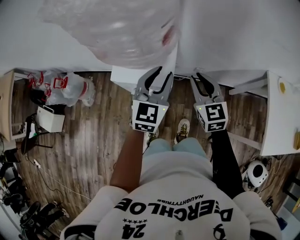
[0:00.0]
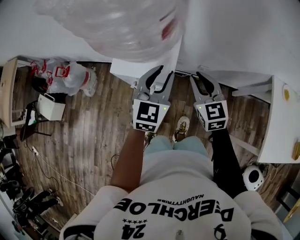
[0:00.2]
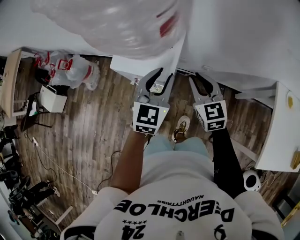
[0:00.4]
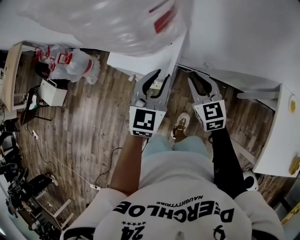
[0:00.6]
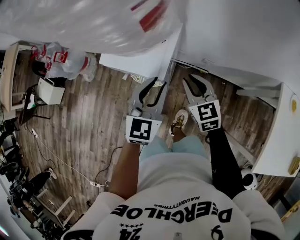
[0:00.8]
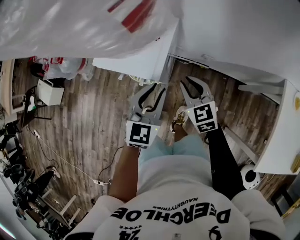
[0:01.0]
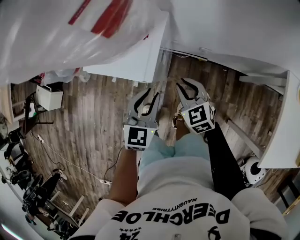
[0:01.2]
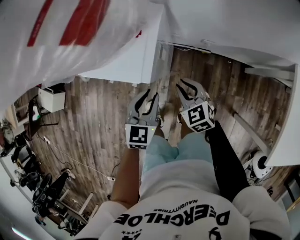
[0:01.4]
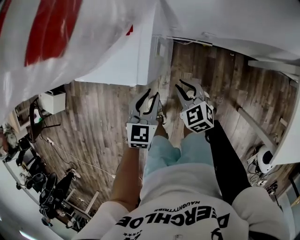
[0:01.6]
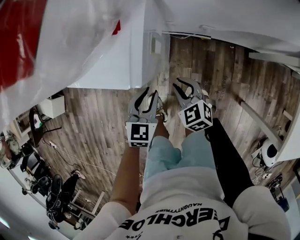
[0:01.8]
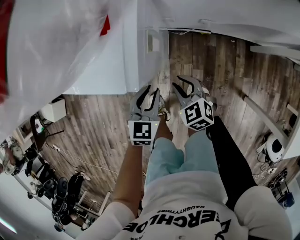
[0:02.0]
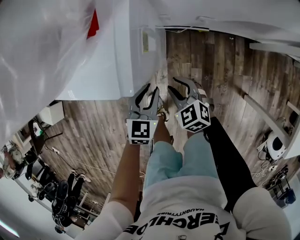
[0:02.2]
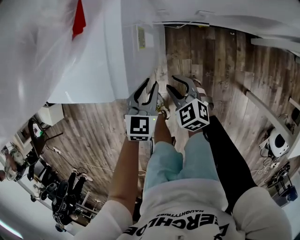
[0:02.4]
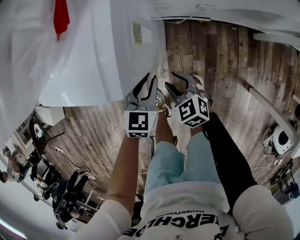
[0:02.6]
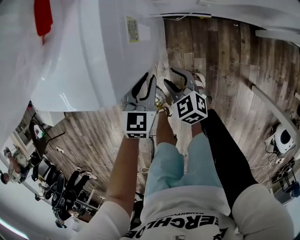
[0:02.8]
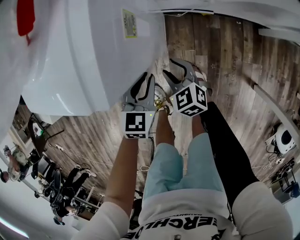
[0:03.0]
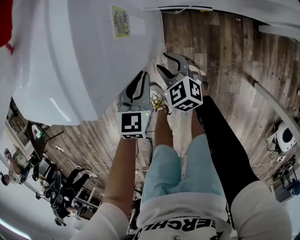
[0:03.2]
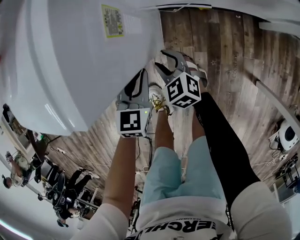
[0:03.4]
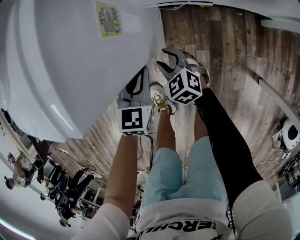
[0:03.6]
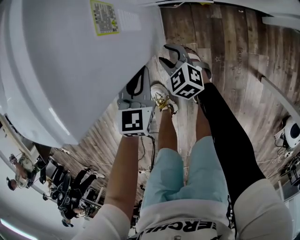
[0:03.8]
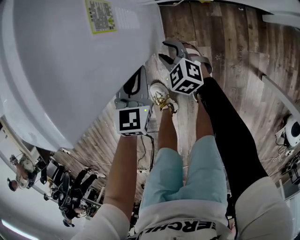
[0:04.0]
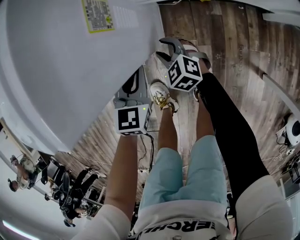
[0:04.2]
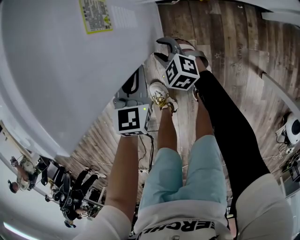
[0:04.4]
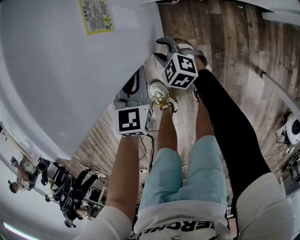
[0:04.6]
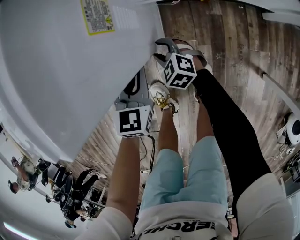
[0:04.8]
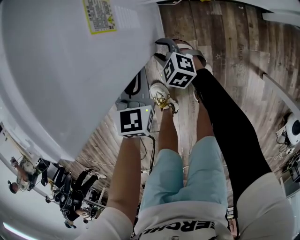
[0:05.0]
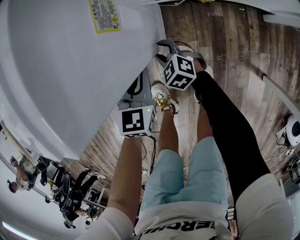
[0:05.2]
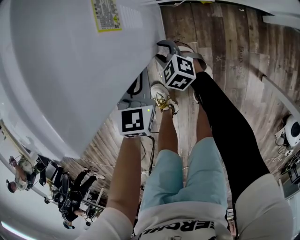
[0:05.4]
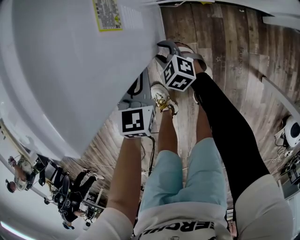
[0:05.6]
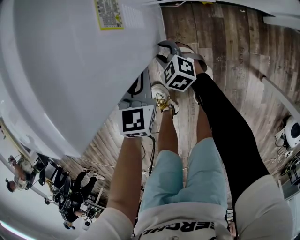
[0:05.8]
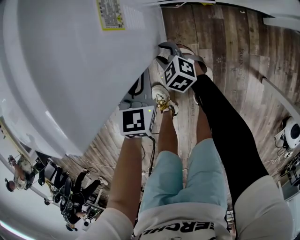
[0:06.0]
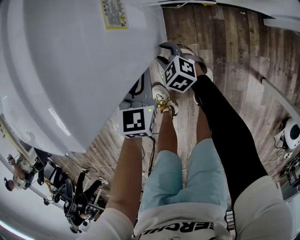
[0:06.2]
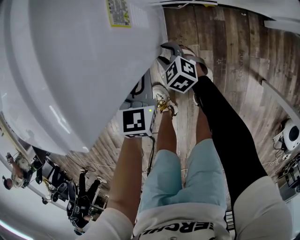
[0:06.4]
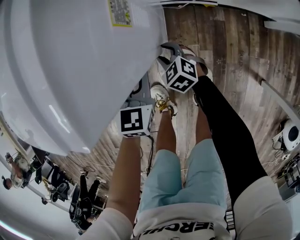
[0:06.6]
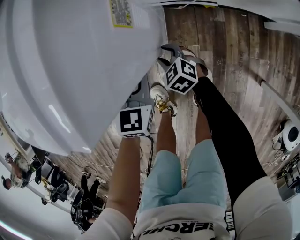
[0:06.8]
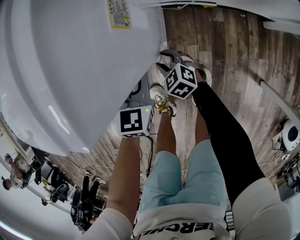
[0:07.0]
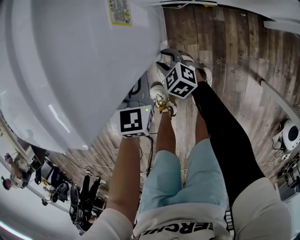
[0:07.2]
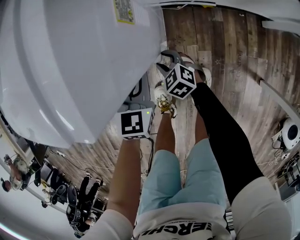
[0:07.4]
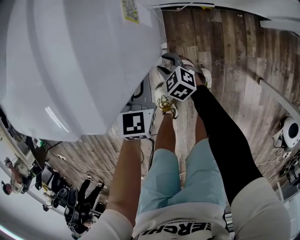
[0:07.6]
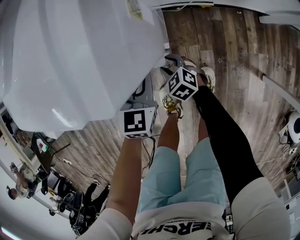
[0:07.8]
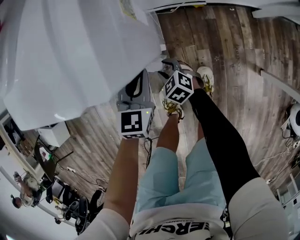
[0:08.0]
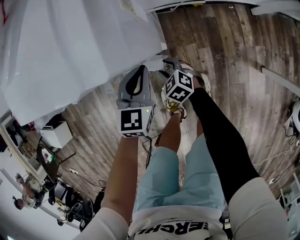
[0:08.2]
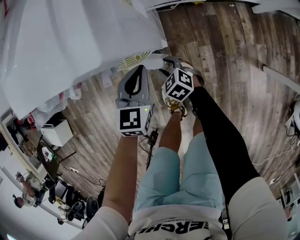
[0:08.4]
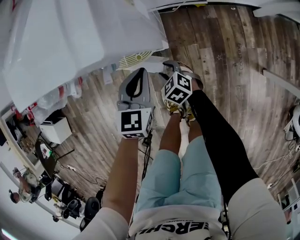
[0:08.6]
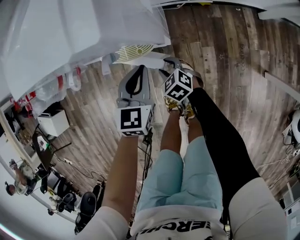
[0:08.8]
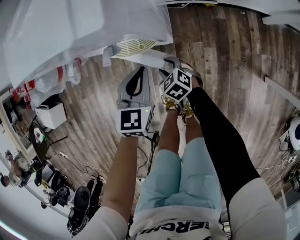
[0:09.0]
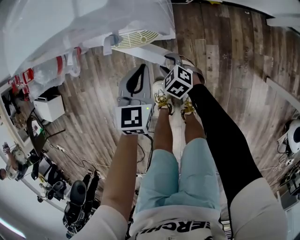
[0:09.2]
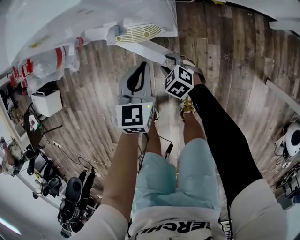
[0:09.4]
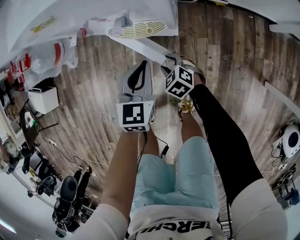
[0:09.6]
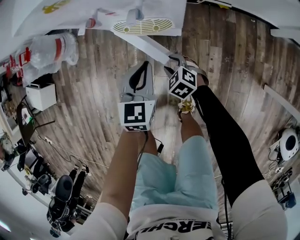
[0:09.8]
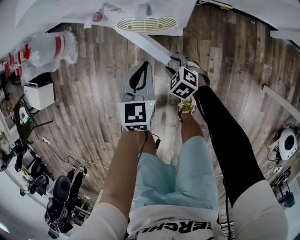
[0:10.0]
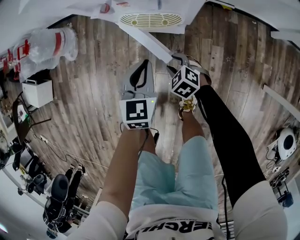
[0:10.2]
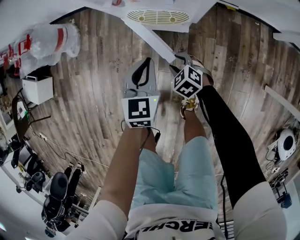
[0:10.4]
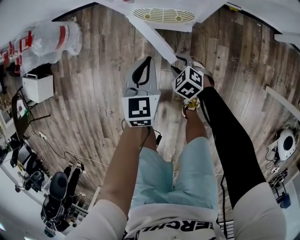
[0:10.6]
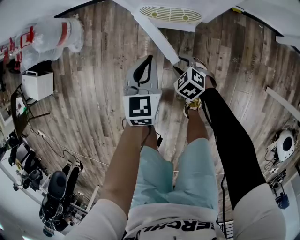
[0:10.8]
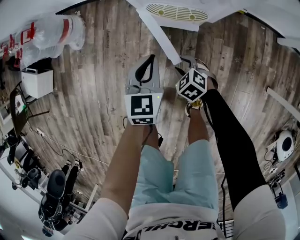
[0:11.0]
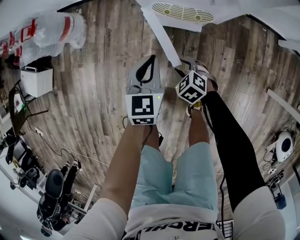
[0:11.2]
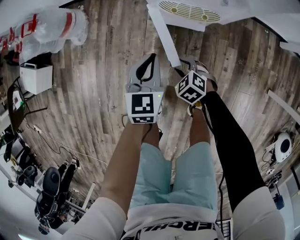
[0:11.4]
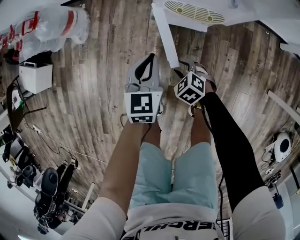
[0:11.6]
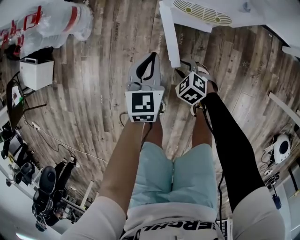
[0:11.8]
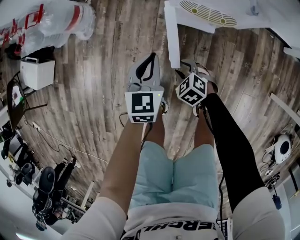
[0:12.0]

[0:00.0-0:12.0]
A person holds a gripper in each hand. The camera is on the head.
0.0 to 1.6 s: The two grippers go some 25 cm downward. The right gripper turns by roughly 30 degrees, while the left gripper rotates approximately 30 degrees.
1.6 to 3.0 s: The grippers both shift downward by about 15 cm. The right gripper opens.
3.0 to 4.4 s: The right gripper shifts roughly 10 cm downward; the left gripper shifts by approximately 5 cm.
4.4 to 7.6 s: There are only small adjustments of the grippers.
7.6 to 9.0 s: Both grippers move backward, roughly 5 cm.
9.0 to 10.4 s: The left gripper travels to the left by about 10 cm. The right gripper moves to the left, about 5 cm.
10.4 to 12.0 s: Both grippers travel together to the left, some 15 cm.

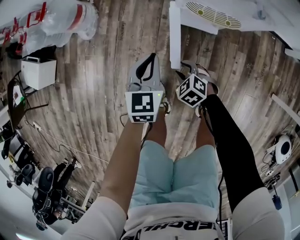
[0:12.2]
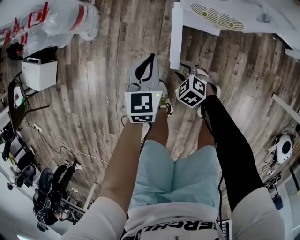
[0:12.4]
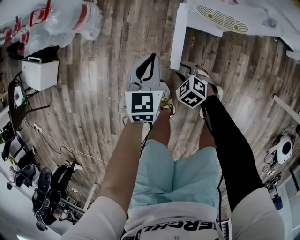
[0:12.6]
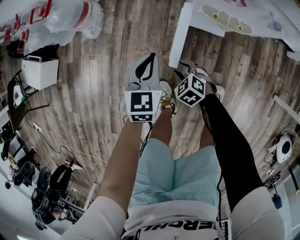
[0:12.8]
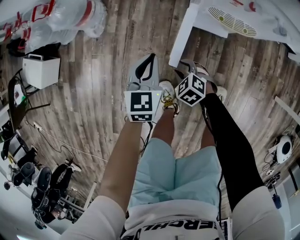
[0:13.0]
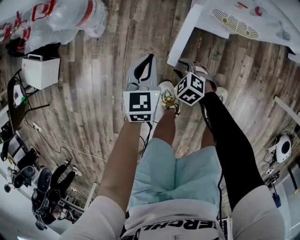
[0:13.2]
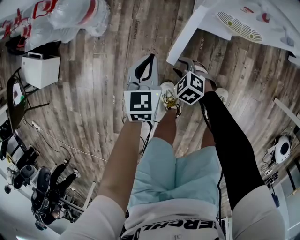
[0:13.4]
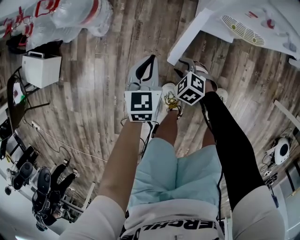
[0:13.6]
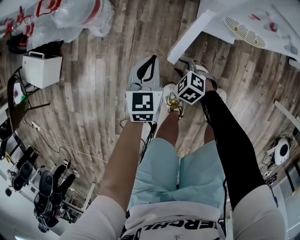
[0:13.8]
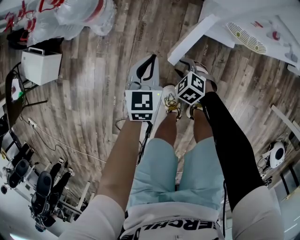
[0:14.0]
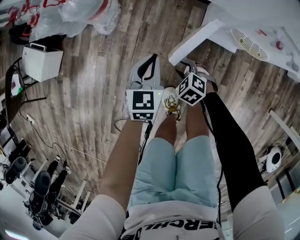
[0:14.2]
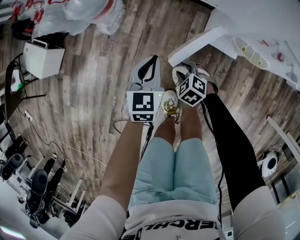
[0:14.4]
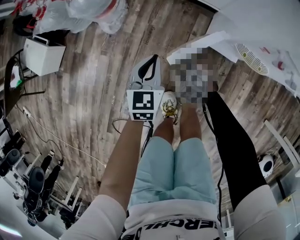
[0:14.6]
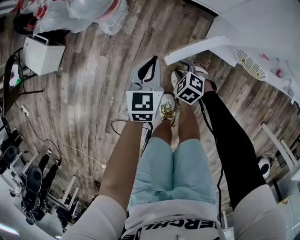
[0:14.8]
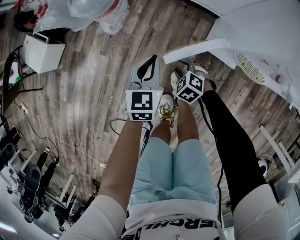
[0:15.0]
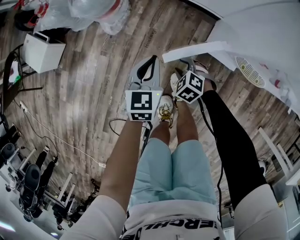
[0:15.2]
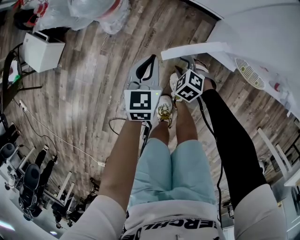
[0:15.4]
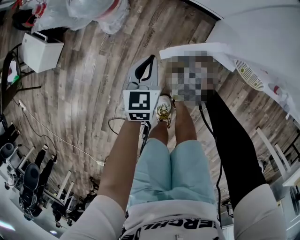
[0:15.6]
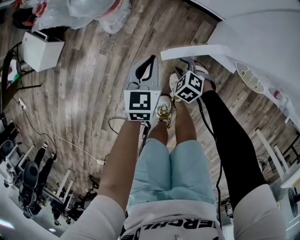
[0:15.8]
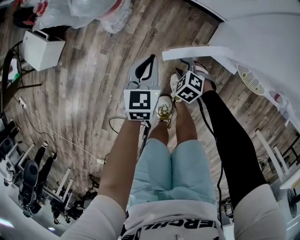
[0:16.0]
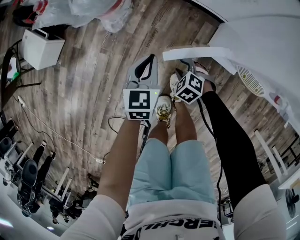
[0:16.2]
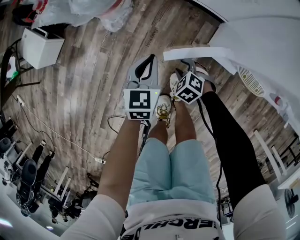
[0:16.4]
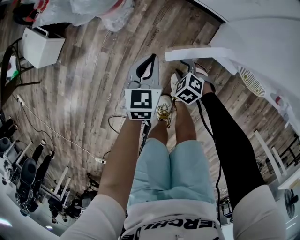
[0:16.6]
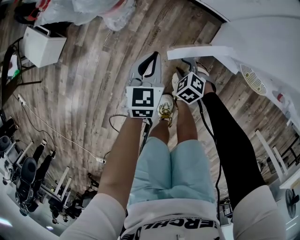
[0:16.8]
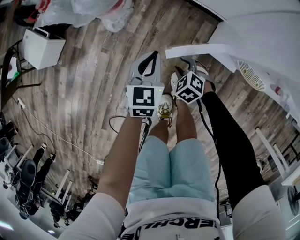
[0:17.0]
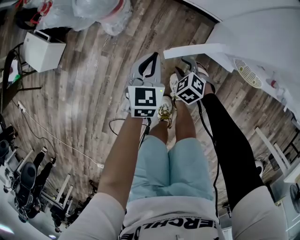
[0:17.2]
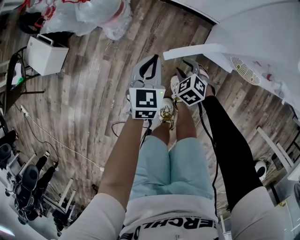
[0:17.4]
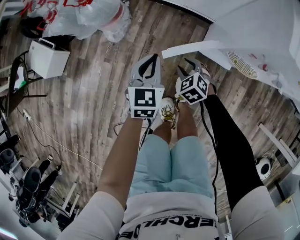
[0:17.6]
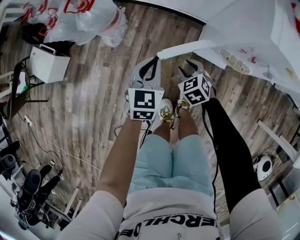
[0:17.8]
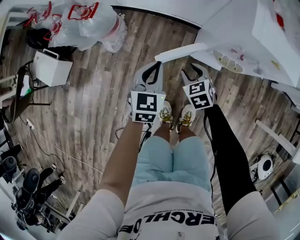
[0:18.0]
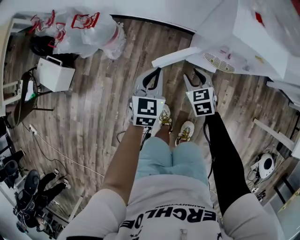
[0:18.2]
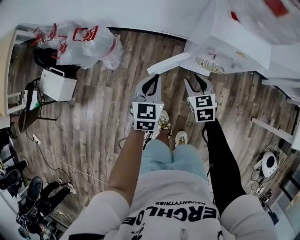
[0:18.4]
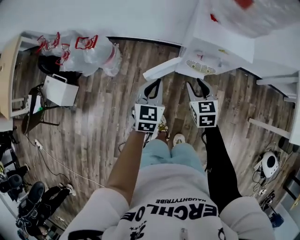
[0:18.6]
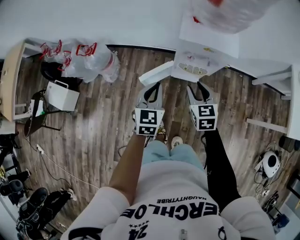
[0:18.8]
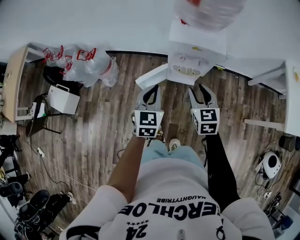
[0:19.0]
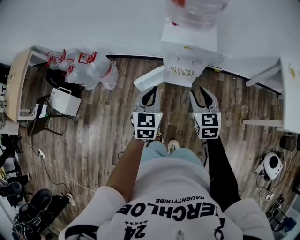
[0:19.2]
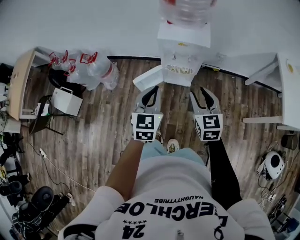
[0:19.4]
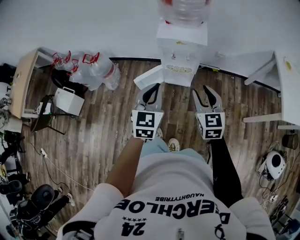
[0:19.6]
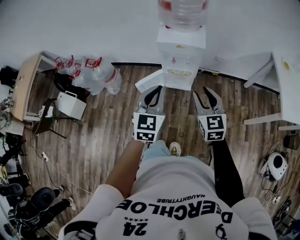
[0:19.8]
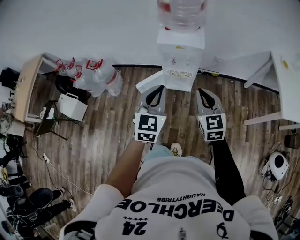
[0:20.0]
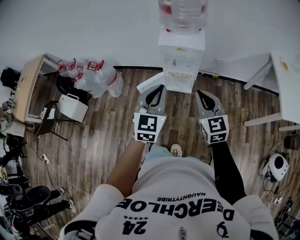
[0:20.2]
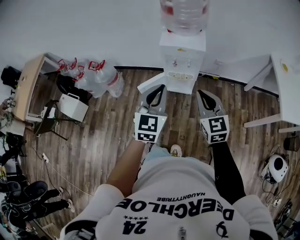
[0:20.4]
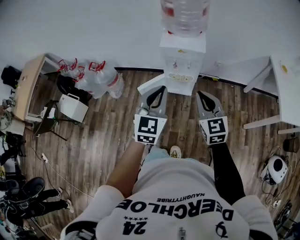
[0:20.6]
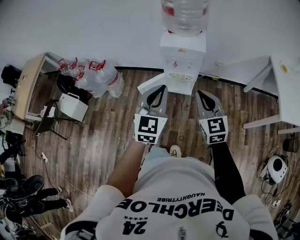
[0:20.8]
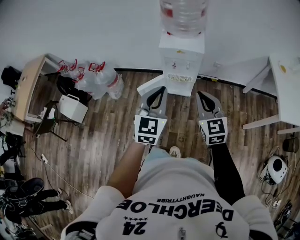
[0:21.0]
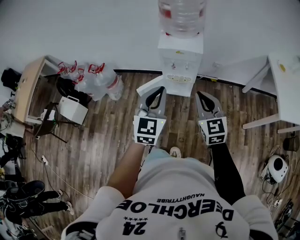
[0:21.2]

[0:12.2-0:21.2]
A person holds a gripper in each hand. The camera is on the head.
12.2 to 13.8 s: Both grippers move to the left and forward, about 15 cm.
13.8 to 15.2 s: Both grippers move forward, about 10 cm.
15.2 to 16.6 s: The grippers move only a little.
16.6 to 18.2 s: The grippers both shift upward by approximately 25 cm. The right gripper turns by roughly 50 degrees.
18.2 to 19.8 s: The right gripper moves upward, to the right and backward, roughly 50 cm, and tilts its fingers some 30 degrees upward; the left gripper travels to the right, upward and backward by about 40 cm.
19.8 to 21.2 s: The right gripper changes place by some 5 cm, and closes up. The left gripper shifts by some 5 cm.

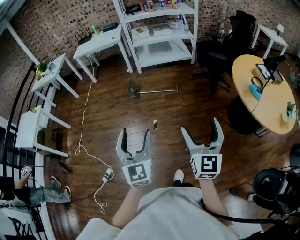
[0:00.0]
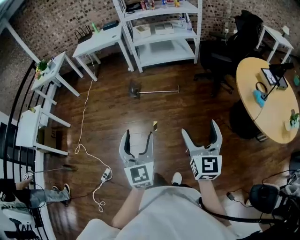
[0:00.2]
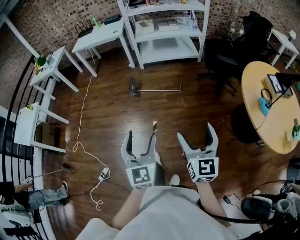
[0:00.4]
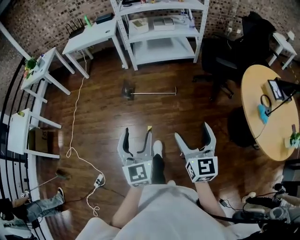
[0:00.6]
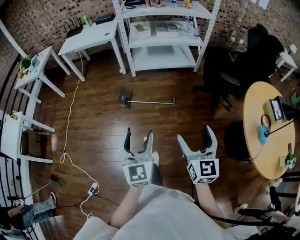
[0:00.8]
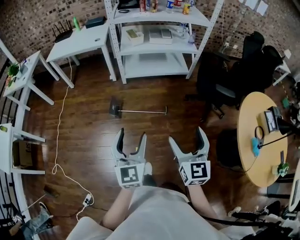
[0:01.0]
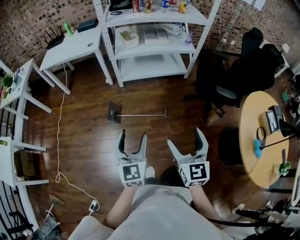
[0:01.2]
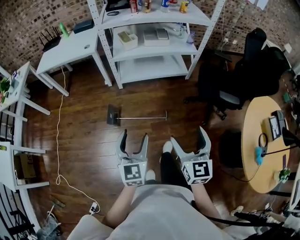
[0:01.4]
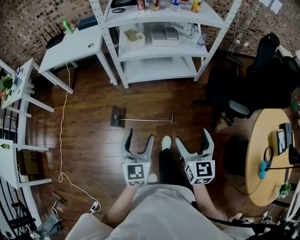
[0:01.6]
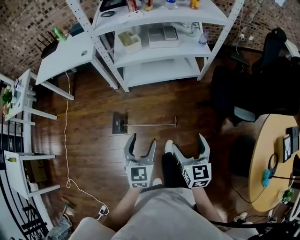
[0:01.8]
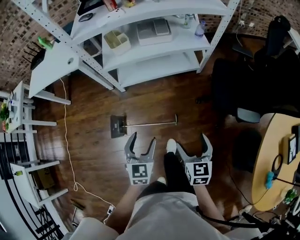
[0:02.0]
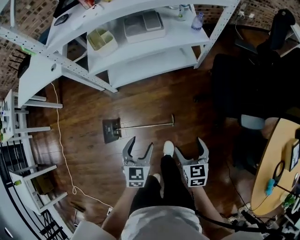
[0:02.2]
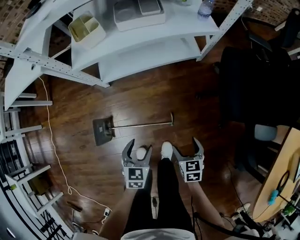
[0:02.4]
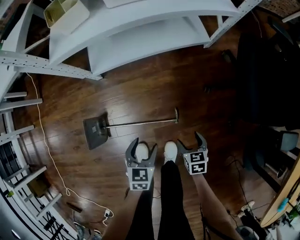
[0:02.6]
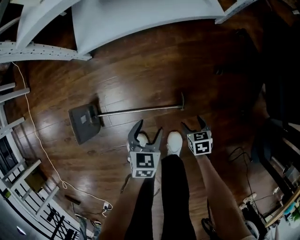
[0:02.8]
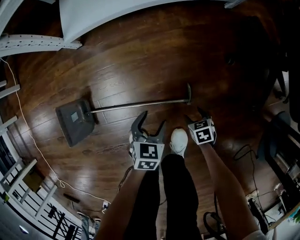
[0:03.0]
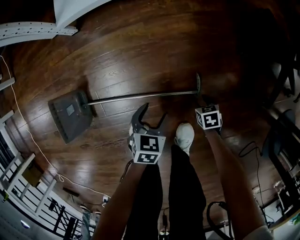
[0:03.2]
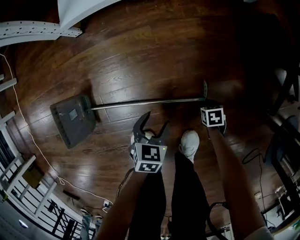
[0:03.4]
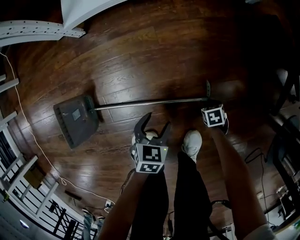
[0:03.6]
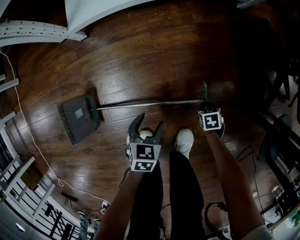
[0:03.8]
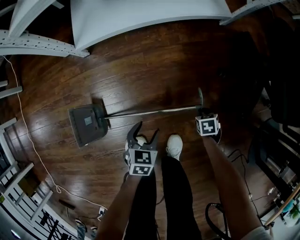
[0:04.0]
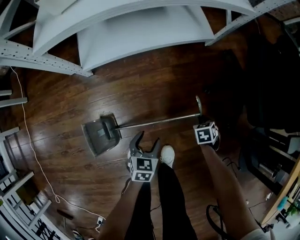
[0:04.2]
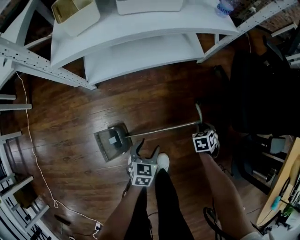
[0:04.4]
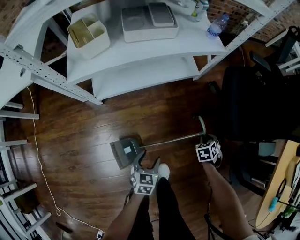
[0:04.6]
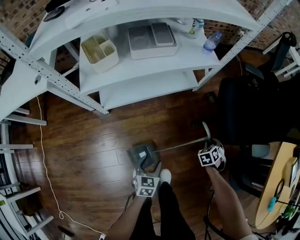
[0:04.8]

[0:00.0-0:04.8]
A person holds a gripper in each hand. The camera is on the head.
0.0 to 1.6 s: The pair of grippers is taken forward, approximately 70 cm.
1.6 to 3.2 s: The two grippers go some 90 cm downward. The left gripper tilts its fingers roughly 40 degrees downward; the right gripper tilts its fingers some 60 degrees downward, and closes its fingers.
3.2 to 4.8 s: Both grippers move upward, about 50 cm. The right gripper swivels about 40 degrees.
